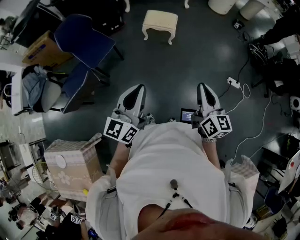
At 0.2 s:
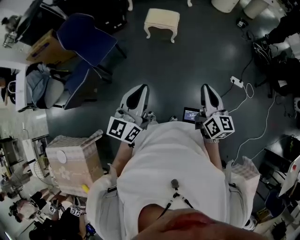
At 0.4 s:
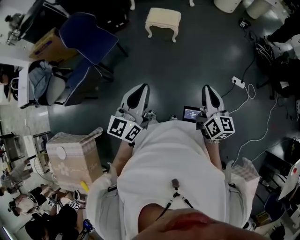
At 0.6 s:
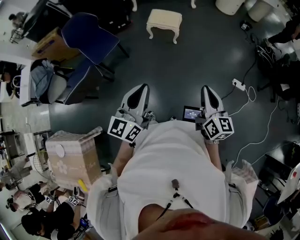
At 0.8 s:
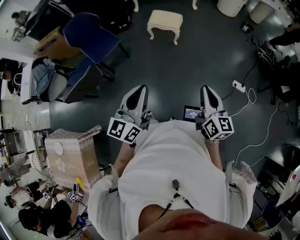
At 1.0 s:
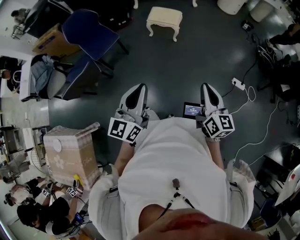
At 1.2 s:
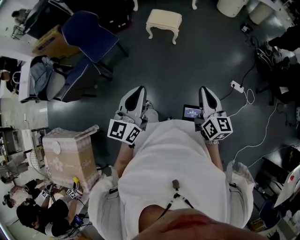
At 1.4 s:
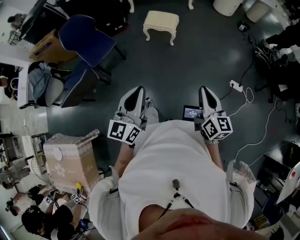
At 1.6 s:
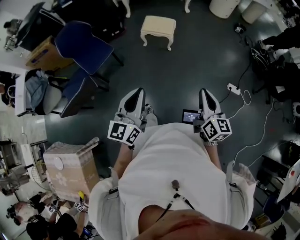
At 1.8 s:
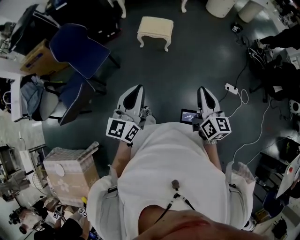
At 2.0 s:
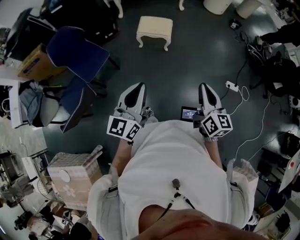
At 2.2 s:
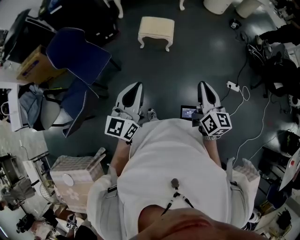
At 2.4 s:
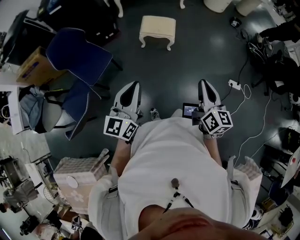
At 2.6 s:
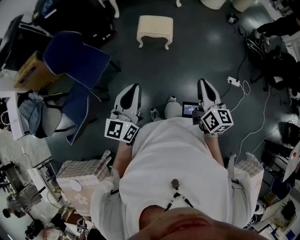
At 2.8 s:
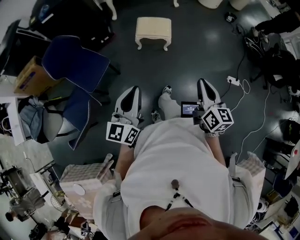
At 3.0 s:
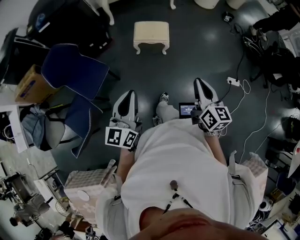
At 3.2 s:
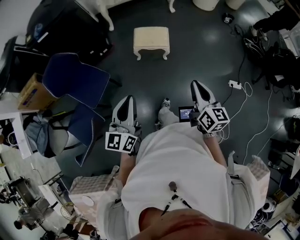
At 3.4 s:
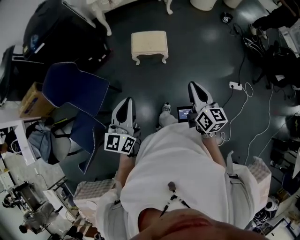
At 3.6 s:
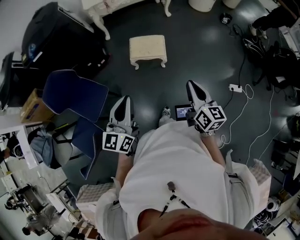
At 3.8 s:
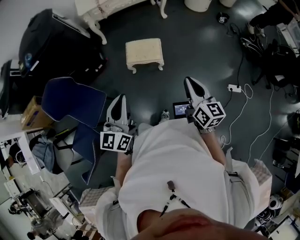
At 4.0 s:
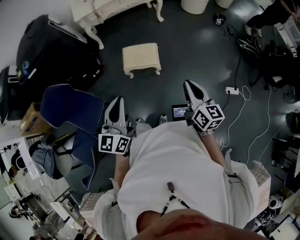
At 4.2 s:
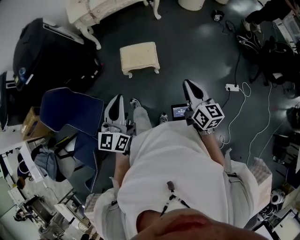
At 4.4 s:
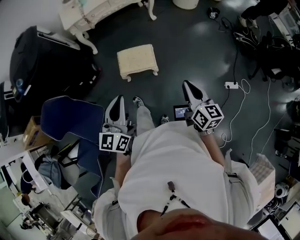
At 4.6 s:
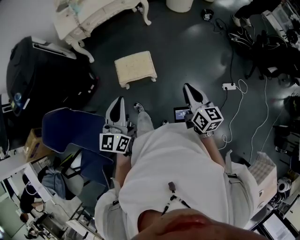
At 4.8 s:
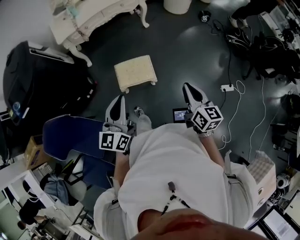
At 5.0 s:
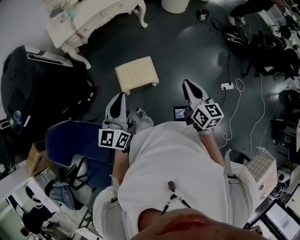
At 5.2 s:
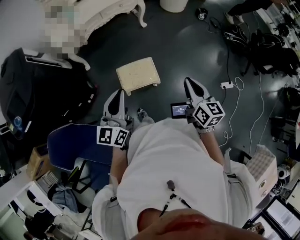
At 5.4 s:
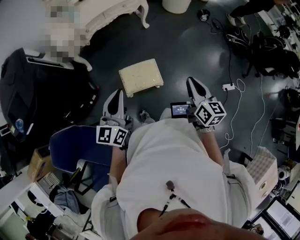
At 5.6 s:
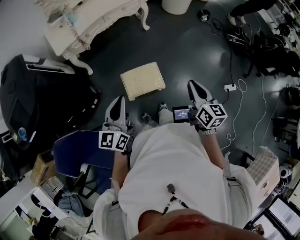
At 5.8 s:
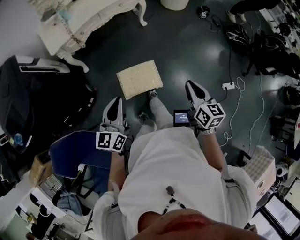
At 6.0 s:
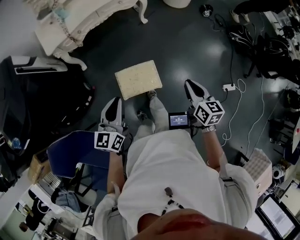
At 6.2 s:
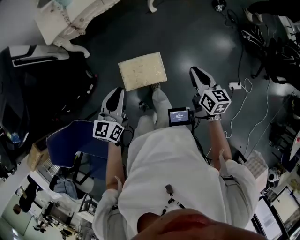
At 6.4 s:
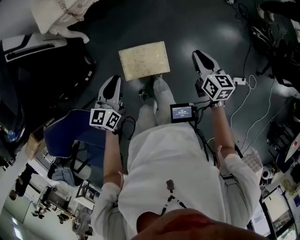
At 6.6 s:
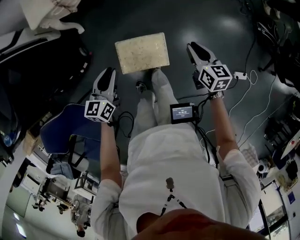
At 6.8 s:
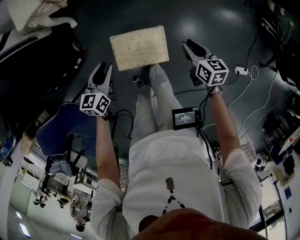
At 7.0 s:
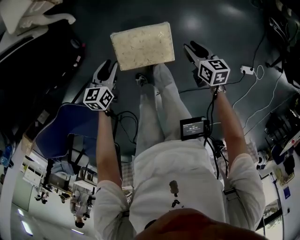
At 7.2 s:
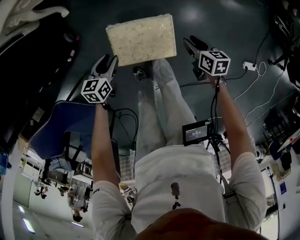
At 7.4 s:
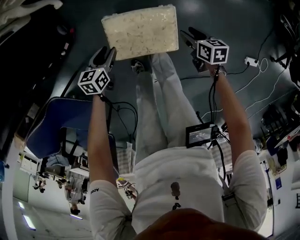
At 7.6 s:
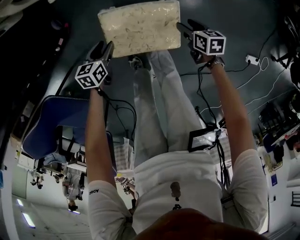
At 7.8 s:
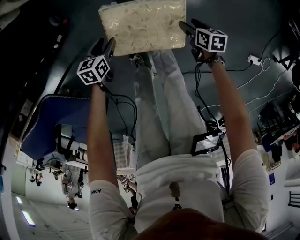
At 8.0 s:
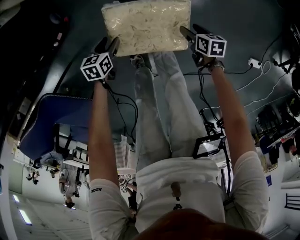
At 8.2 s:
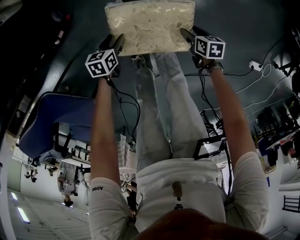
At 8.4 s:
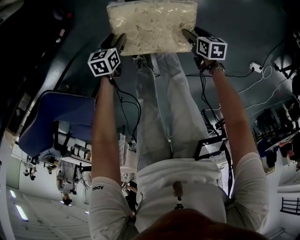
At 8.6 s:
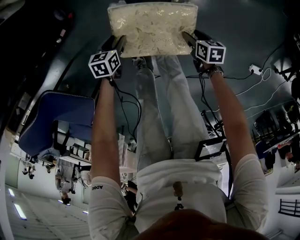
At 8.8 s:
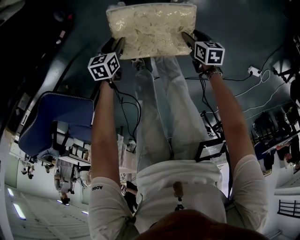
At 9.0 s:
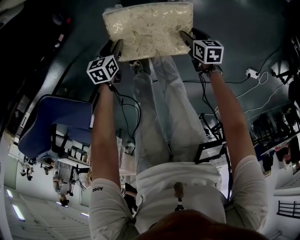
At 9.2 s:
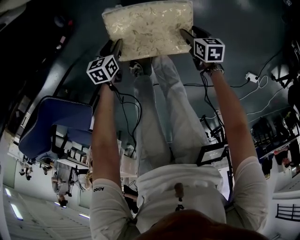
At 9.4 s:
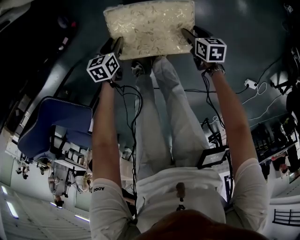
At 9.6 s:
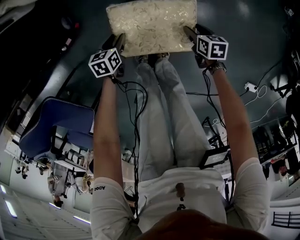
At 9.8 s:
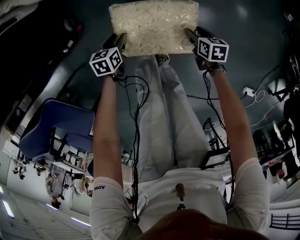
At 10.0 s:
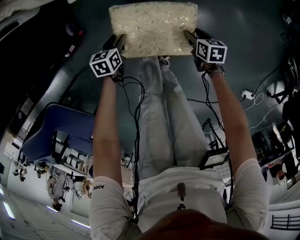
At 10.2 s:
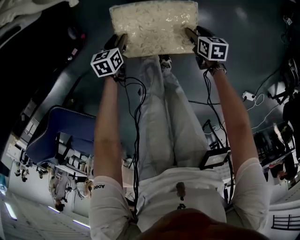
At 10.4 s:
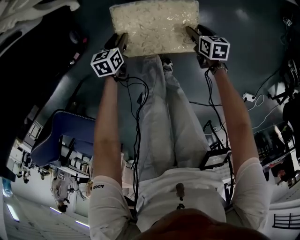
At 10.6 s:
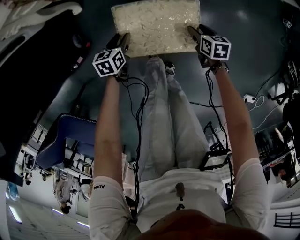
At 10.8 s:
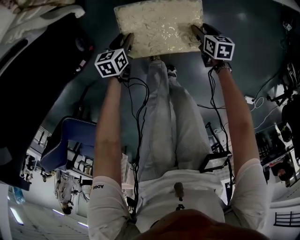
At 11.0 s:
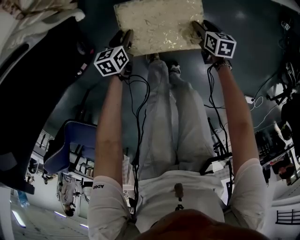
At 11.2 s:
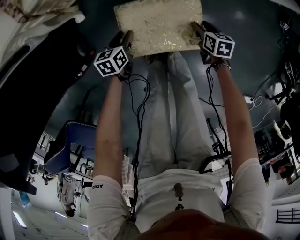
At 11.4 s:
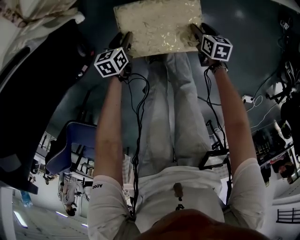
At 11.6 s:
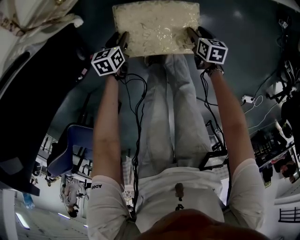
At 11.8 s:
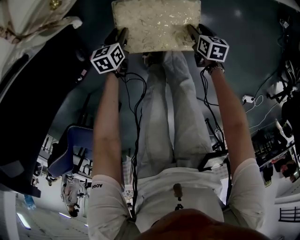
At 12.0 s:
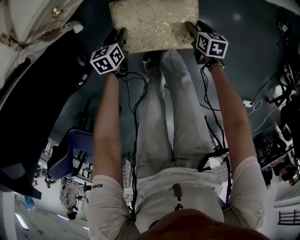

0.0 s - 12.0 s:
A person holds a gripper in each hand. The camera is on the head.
0.0 s - 1.6 s: Both grippers move to the right, about 10 cm.
1.6 s - 3.0 s: Both grippers move forward and to the left, about 25 cm.
3.0 s - 4.4 s: Both grippers travel together forward, approximately 30 cm.
4.4 s - 6.0 s: The right gripper goes some 25 cm forward. The left gripper moves forward and to the left, approximately 35 cm.
6.0 s - 7.6 s: The two grippers go approximately 60 cm downward. The right gripper tilts its fingers approximately 30 degrees downward, and opens up. The left gripper angles its fingers downward, by some 40 degrees, and opens its fingers.
7.6 s - 9.0 s: Both grippers move downward, some 5 cm.
9.0 s - 10.4 s: The two grippers go approximately 20 cm forward.
10.4 s - 12.0 s: The grippers both shift forward by approximately 20 cm.

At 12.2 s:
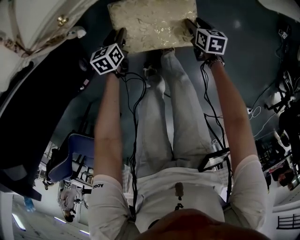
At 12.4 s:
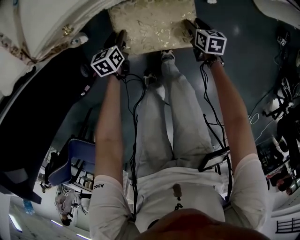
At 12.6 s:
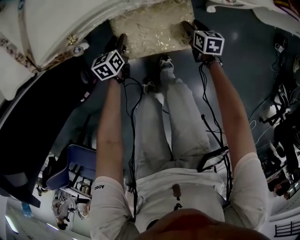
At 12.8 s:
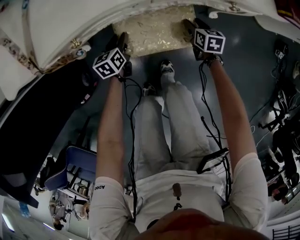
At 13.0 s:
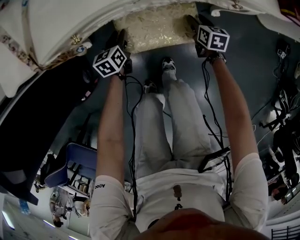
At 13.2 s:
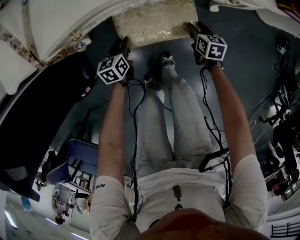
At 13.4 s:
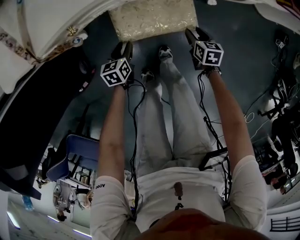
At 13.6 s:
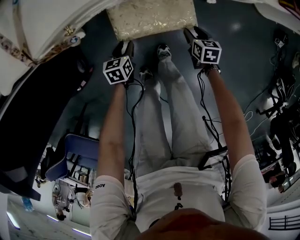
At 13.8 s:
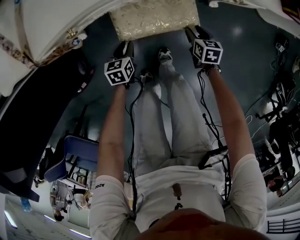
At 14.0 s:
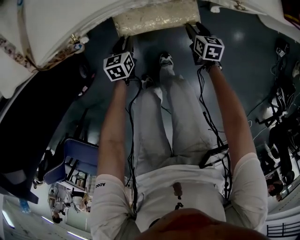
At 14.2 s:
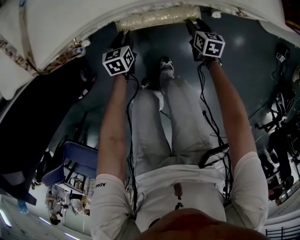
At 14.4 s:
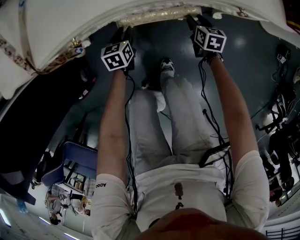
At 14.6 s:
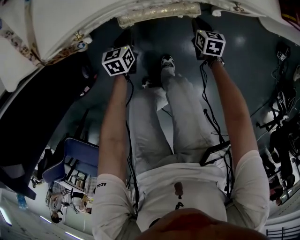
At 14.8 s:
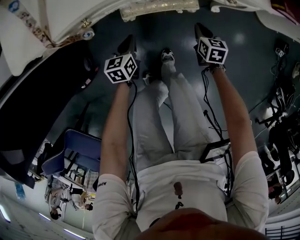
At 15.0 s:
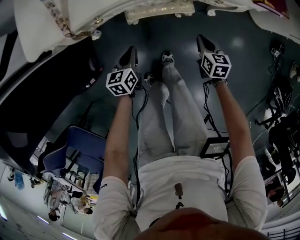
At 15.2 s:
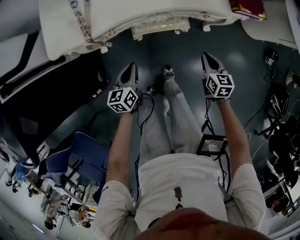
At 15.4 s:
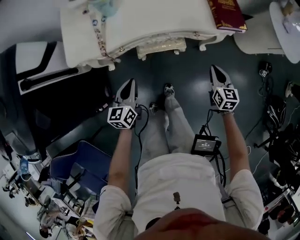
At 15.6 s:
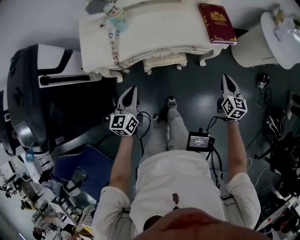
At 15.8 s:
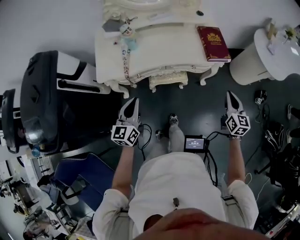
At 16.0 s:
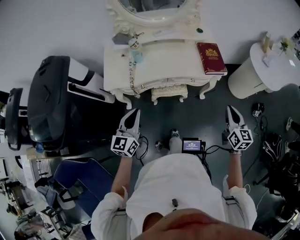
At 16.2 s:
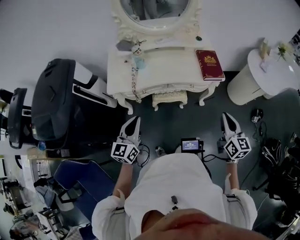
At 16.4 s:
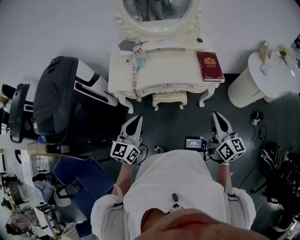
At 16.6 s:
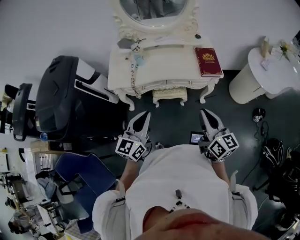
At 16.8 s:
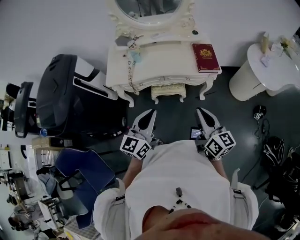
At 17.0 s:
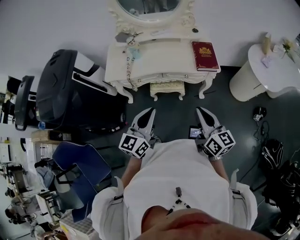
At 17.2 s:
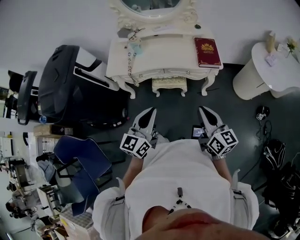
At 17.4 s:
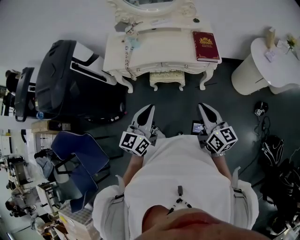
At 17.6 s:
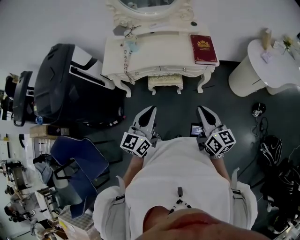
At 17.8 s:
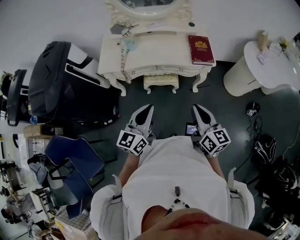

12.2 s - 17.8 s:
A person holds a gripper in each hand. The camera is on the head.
12.2 s - 13.6 s: The right gripper reaches some 15 cm forward, then returns. Meanwhile the left gripper goes forward and returns, approximately 10 cm each way.
13.6 s - 15.0 s: The two grippers go some 15 cm upward. The right gripper closes its fingers. Meanwhile the left gripper closes up.
15.0 s - 16.4 s: The grippers both shift upward by roughly 60 cm. The left gripper tilts its fingers roughly 40 degrees upward. Meanwhile the right gripper tips its fingers upward by approximately 40 degrees.
16.4 s - 17.8 s: The left gripper is displaced to the right and backward by about 15 cm. The right gripper goes approximately 5 cm backward.

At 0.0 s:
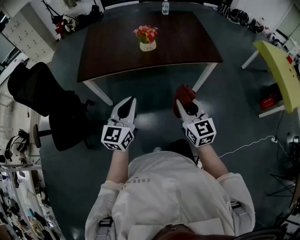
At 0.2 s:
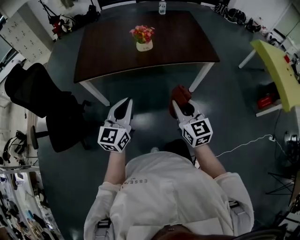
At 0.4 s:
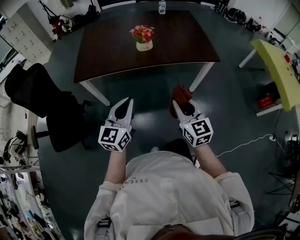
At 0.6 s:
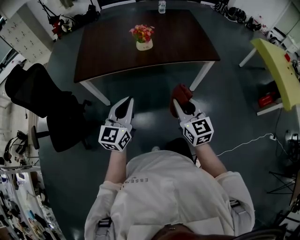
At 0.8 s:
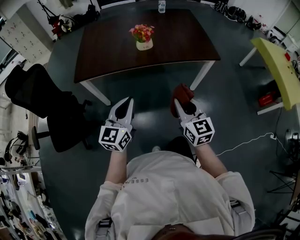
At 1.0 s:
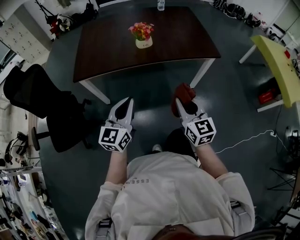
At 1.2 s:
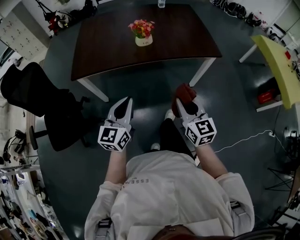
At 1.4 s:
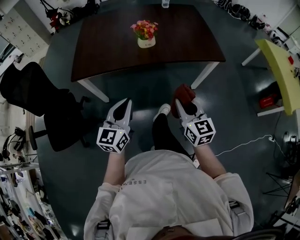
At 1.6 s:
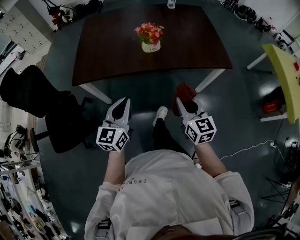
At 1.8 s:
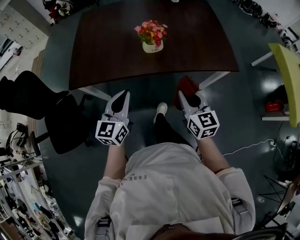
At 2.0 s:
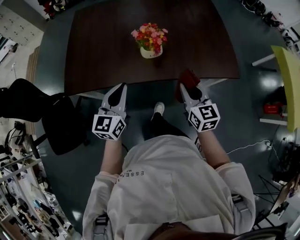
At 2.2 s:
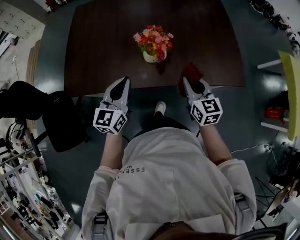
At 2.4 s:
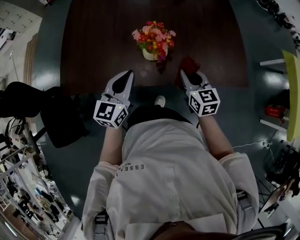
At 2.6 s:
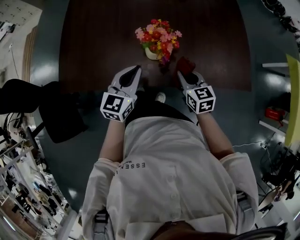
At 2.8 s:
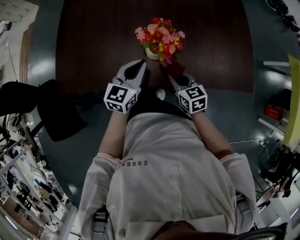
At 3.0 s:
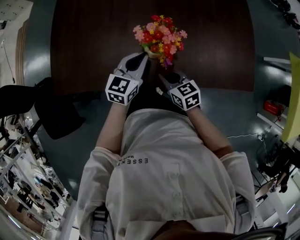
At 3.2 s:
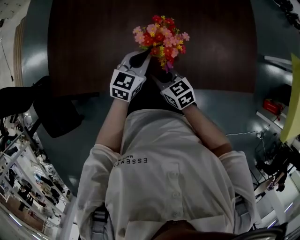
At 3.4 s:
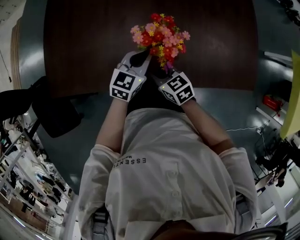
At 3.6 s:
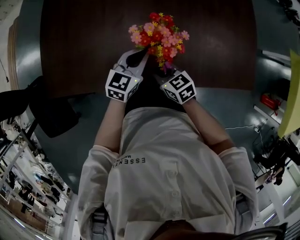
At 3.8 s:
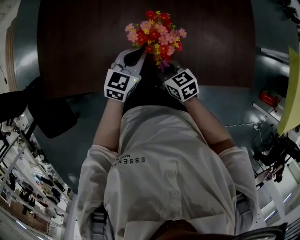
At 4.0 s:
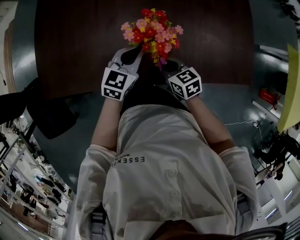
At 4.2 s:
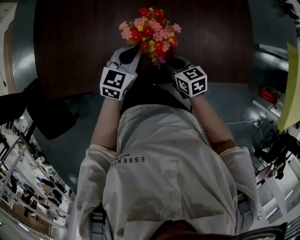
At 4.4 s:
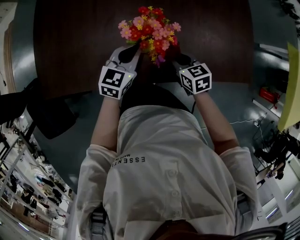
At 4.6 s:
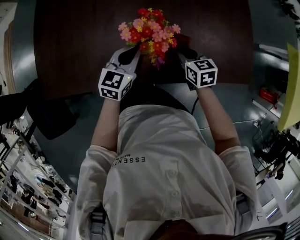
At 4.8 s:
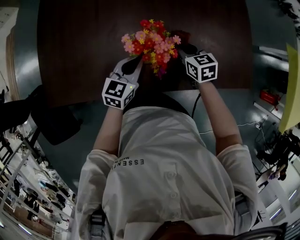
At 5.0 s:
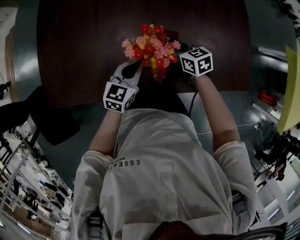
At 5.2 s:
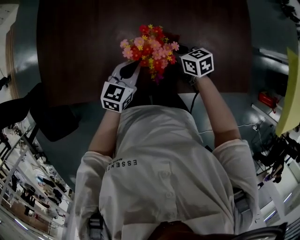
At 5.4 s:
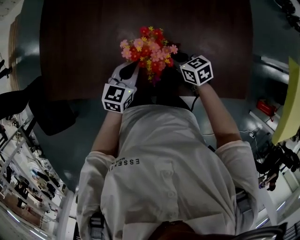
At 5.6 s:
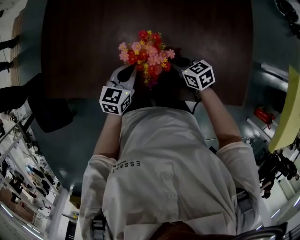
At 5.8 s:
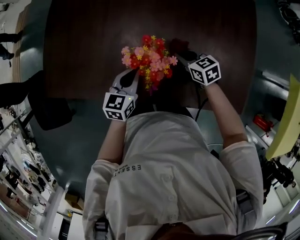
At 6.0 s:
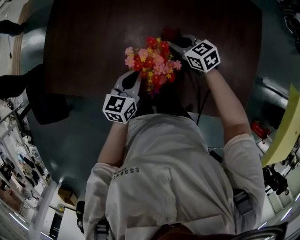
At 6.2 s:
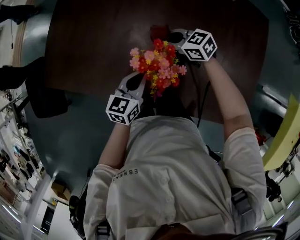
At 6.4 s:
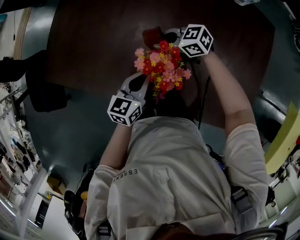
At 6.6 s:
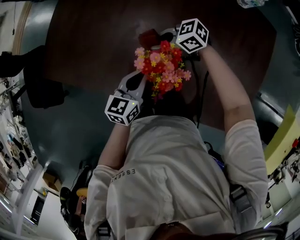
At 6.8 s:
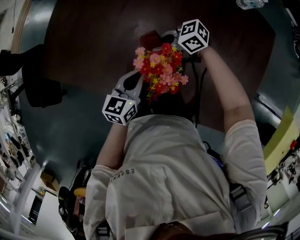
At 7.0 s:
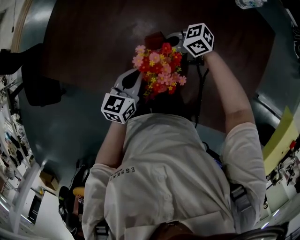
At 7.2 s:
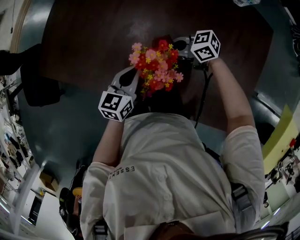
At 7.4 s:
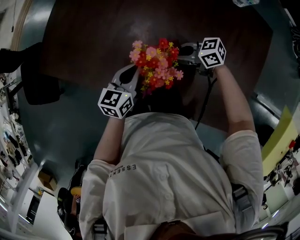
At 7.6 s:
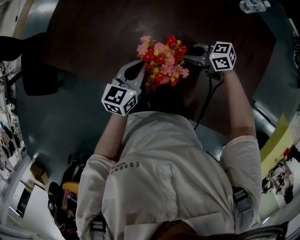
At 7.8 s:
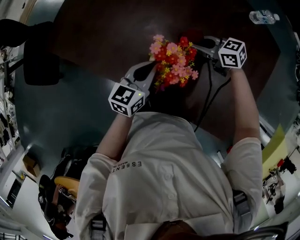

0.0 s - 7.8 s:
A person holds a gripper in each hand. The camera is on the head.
0.0 s - 1.6 s: The two grippers go approximately 10 cm forward.
1.6 s - 3.2 s: Both grippers move forward and downward, approximately 40 cm. The right gripper swivels approximately 40 degrees, while the left gripper swivels approximately 20 degrees.
3.2 s - 4.6 s: The right gripper is displaced to the right and forward by roughly 15 cm, and rotates roughly 20 degrees.
4.6 s - 6.2 s: The right gripper changes place by roughly 20 cm, and swivels about 60 degrees, while the left gripper rotates some 30 degrees.
